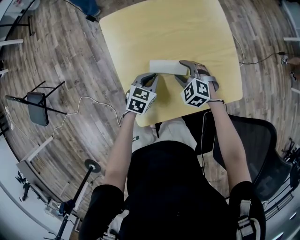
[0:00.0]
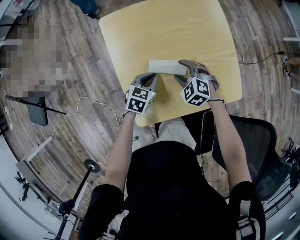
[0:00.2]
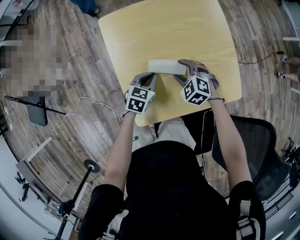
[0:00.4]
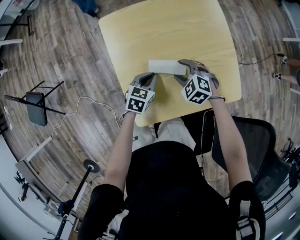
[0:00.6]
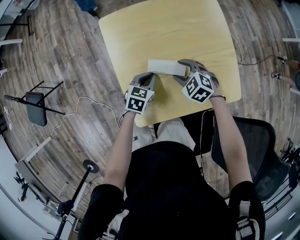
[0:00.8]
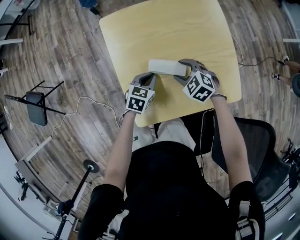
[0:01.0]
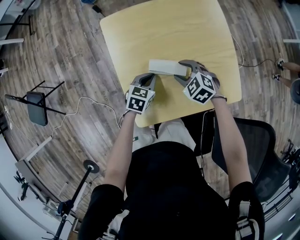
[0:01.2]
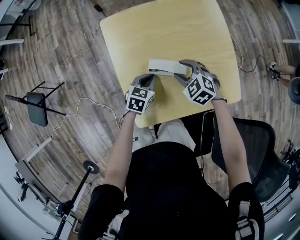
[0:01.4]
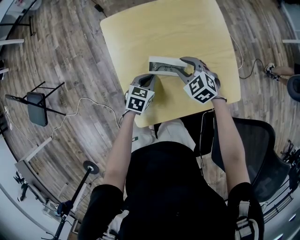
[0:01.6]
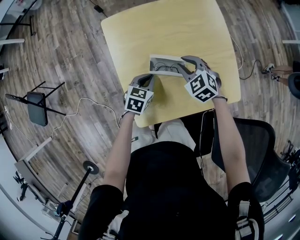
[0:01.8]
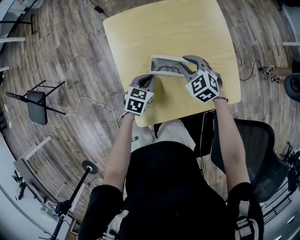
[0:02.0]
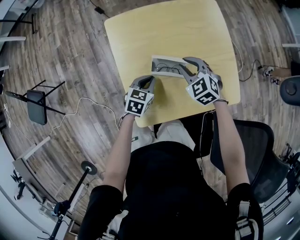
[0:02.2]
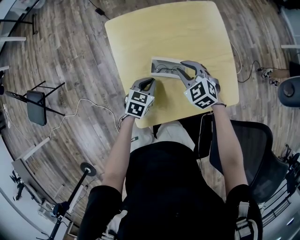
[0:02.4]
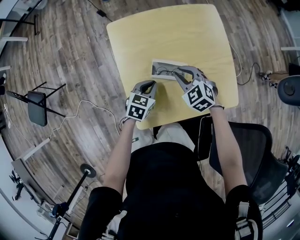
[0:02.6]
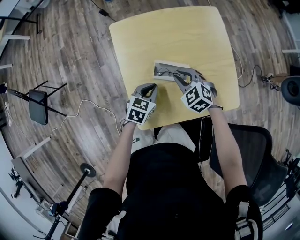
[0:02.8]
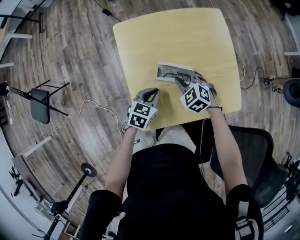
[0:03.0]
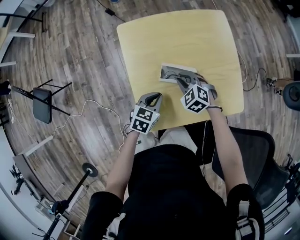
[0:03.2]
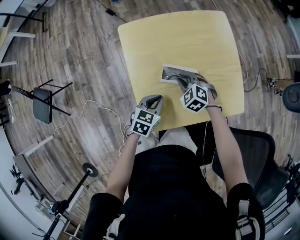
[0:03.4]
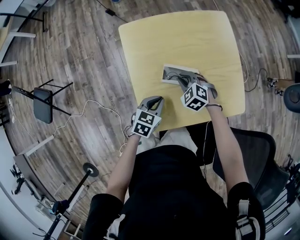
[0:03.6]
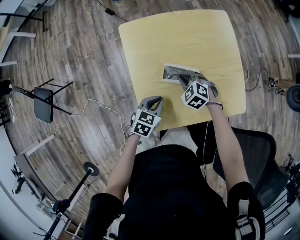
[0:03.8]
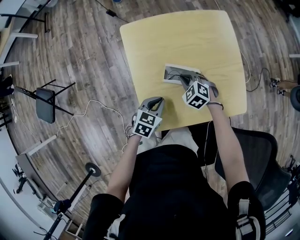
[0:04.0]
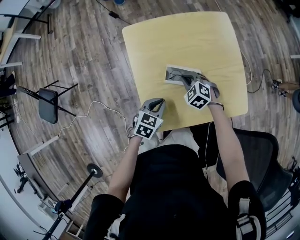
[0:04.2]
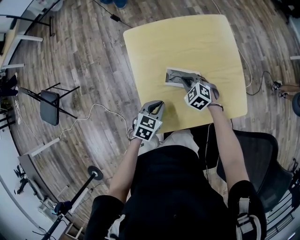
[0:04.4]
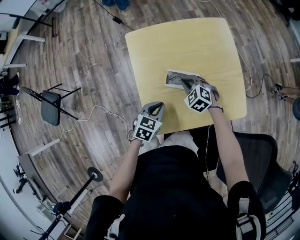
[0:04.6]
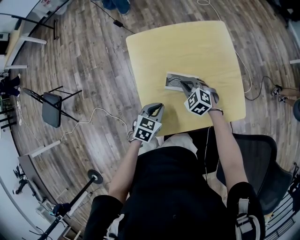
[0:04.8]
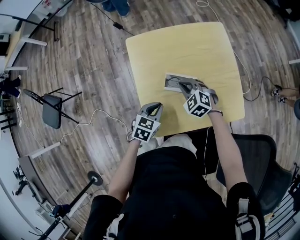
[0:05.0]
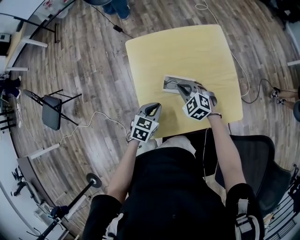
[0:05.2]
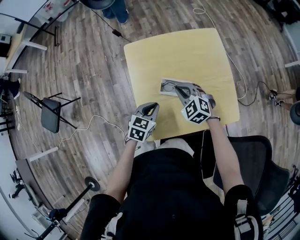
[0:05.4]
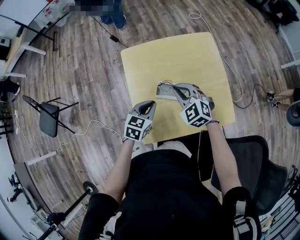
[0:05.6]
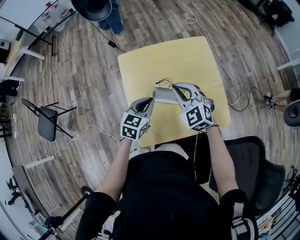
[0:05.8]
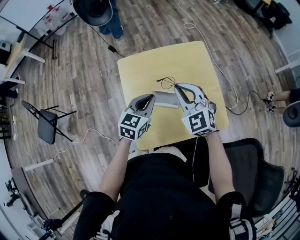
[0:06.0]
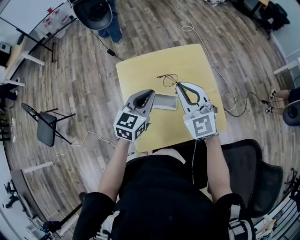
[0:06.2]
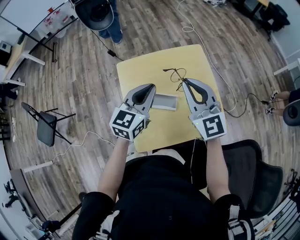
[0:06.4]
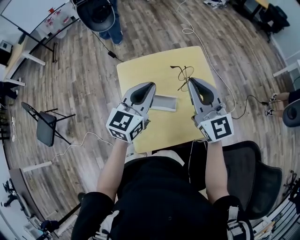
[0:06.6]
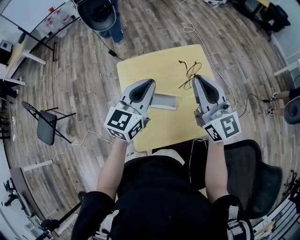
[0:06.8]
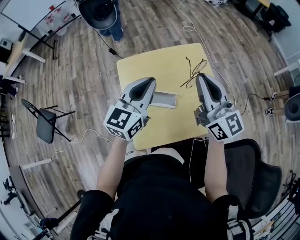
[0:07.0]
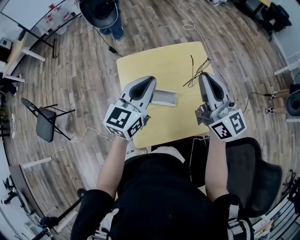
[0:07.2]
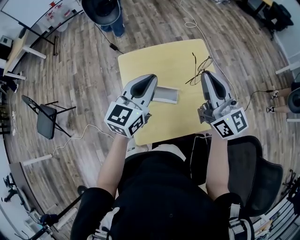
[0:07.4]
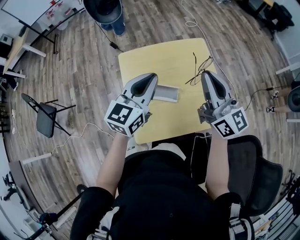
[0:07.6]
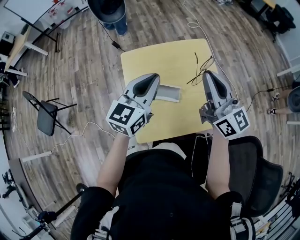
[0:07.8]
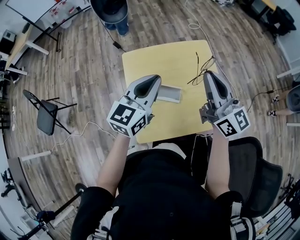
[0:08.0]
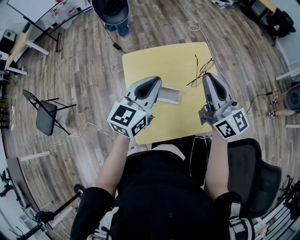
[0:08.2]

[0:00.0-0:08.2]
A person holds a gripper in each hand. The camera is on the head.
0:00.0 to 0:01.6: The right gripper ends up roughly 5 cm from where it was.
0:01.6 to 0:03.2: The left gripper moves upward and backward, approximately 10 cm. The right gripper changes place by some 5 cm.
0:03.2 to 0:05.0: The grippers make only small movements.
0:05.0 to 0:06.6: Both grippers move upward, about 30 cm. The left gripper angles its fingers upward, by approximately 40 degrees. The right gripper tips its fingers upward by roughly 50 degrees.
0:06.6 to 0:08.2: The right gripper turns by about 30 degrees.

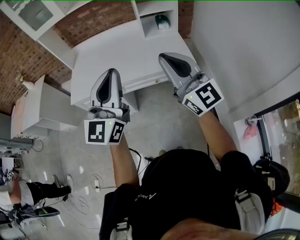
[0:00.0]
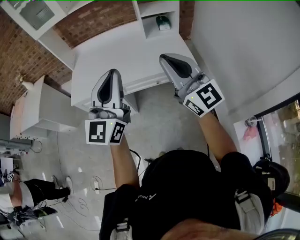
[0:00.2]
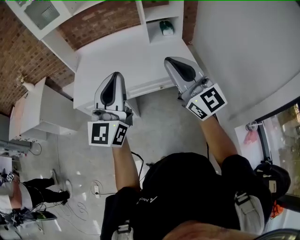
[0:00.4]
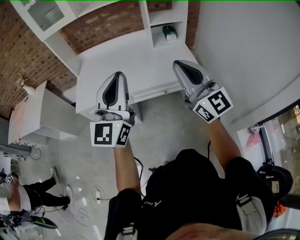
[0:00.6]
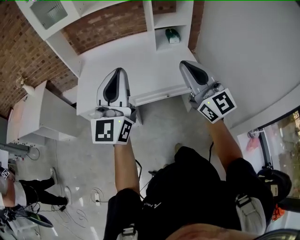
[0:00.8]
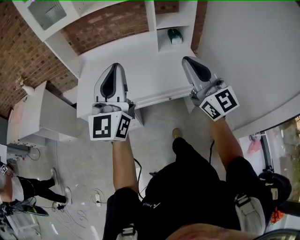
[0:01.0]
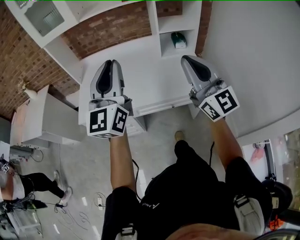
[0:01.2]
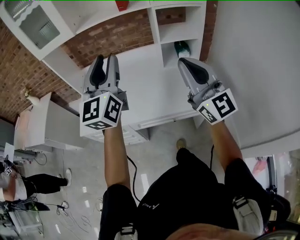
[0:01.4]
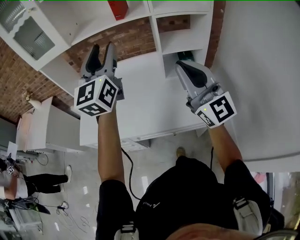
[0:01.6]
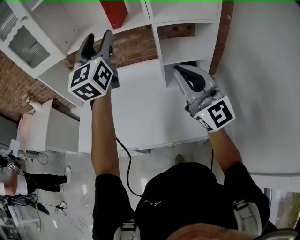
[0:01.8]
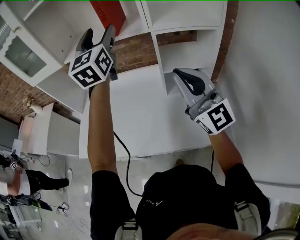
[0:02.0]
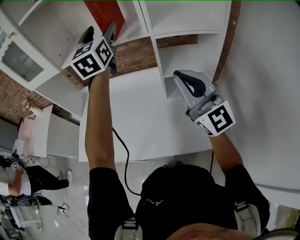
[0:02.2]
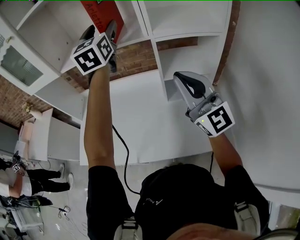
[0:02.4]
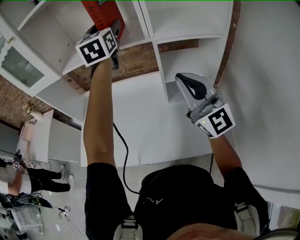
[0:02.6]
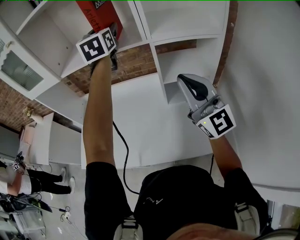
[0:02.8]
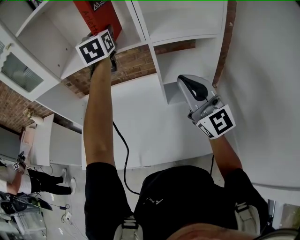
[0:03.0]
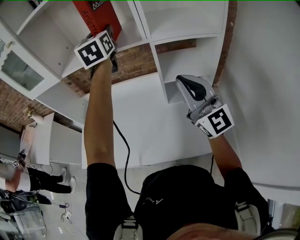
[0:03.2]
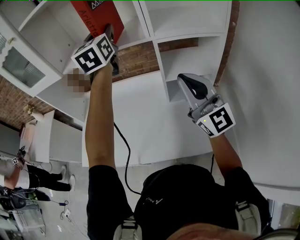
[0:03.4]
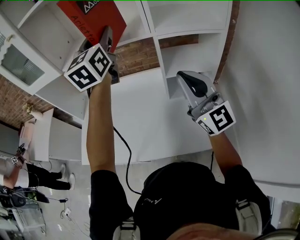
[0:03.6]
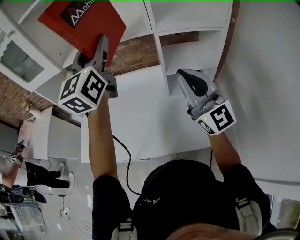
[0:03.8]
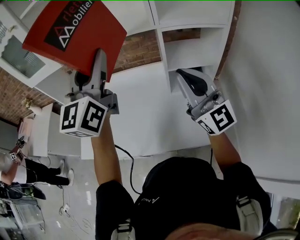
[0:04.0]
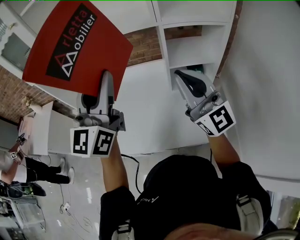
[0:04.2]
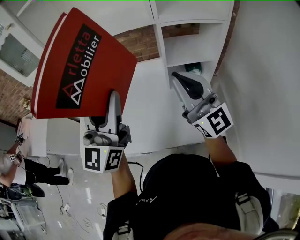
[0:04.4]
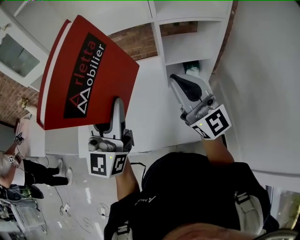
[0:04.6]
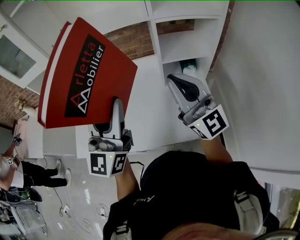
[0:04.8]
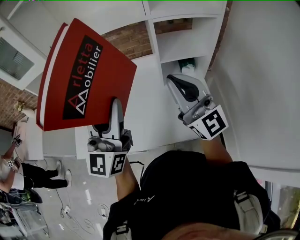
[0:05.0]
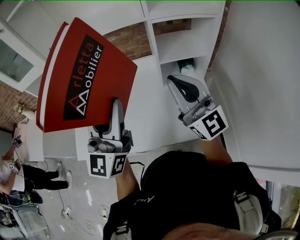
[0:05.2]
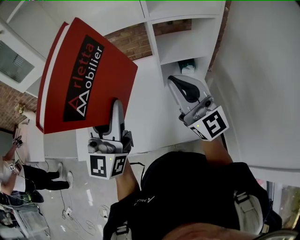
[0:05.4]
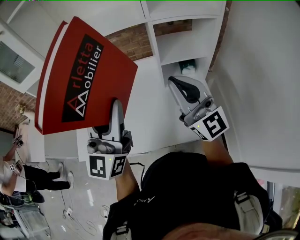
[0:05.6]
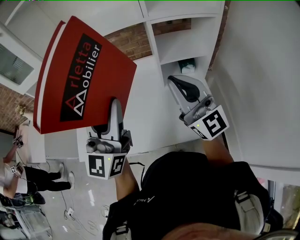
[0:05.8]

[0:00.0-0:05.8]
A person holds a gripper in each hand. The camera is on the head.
0:00.0 to 0:01.4: Both grippers move forward, roughly 25 cm. The left gripper opens its fingers.
0:01.4 to 0:02.8: The right gripper shifts about 25 cm forward and to the right. The left gripper shifts roughly 40 cm forward, changes its angle by some 20 degrees, and opens its fingers.
0:02.8 to 0:04.4: The right gripper heads to the left, covering roughly 5 cm. The left gripper travels backward by approximately 30 cm, turns by some 30 degrees, and closes its fingers.
0:04.4 to 0:05.8: The grippers make only small movements.

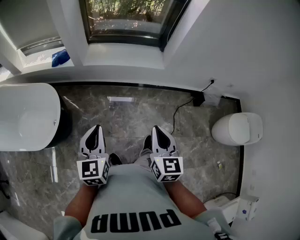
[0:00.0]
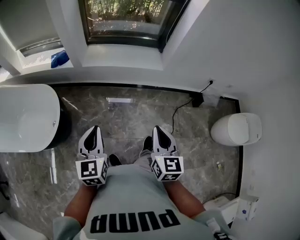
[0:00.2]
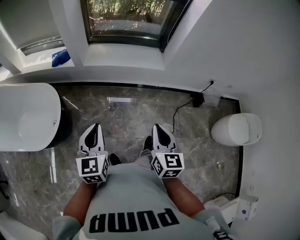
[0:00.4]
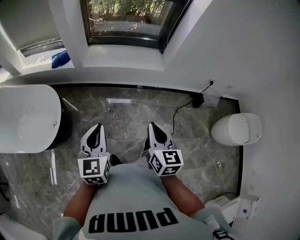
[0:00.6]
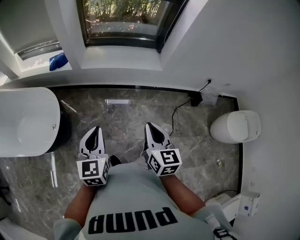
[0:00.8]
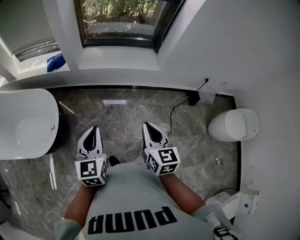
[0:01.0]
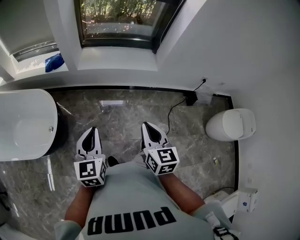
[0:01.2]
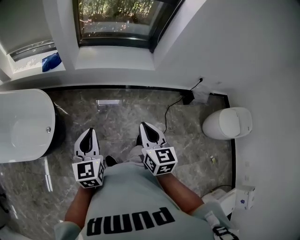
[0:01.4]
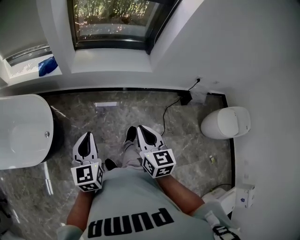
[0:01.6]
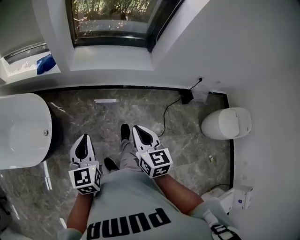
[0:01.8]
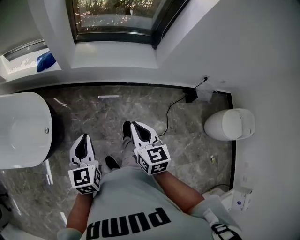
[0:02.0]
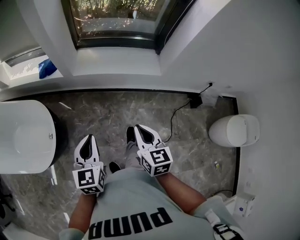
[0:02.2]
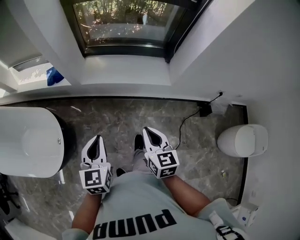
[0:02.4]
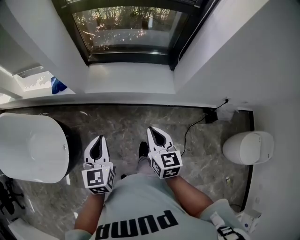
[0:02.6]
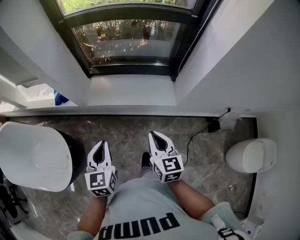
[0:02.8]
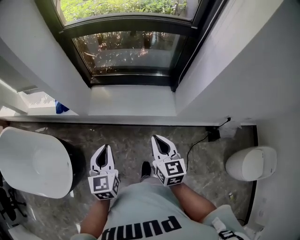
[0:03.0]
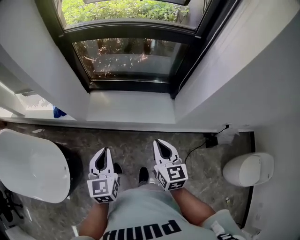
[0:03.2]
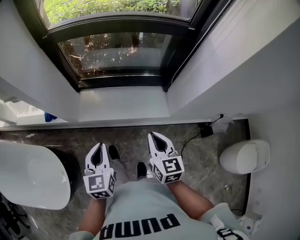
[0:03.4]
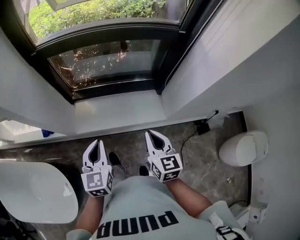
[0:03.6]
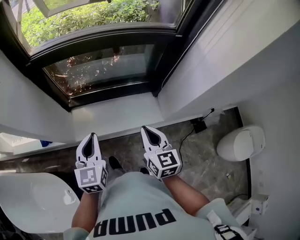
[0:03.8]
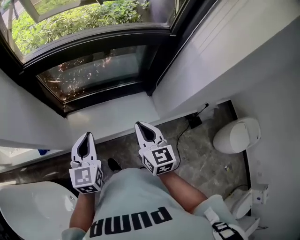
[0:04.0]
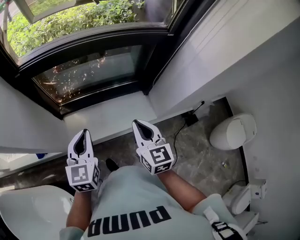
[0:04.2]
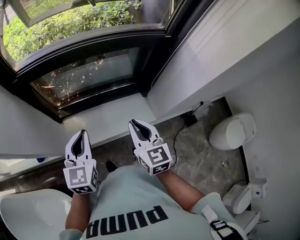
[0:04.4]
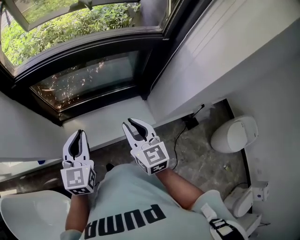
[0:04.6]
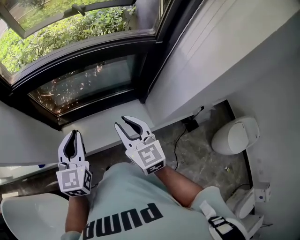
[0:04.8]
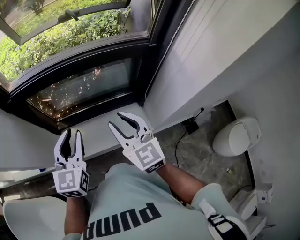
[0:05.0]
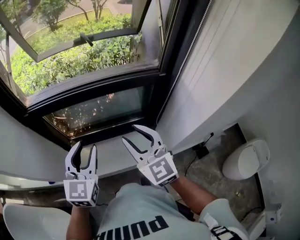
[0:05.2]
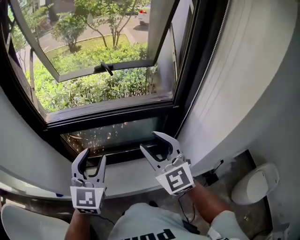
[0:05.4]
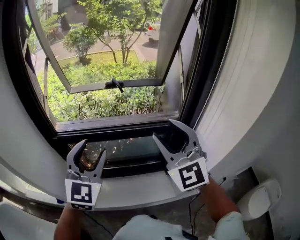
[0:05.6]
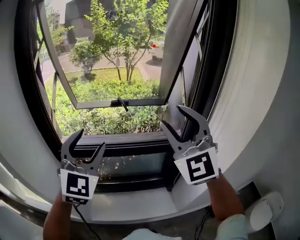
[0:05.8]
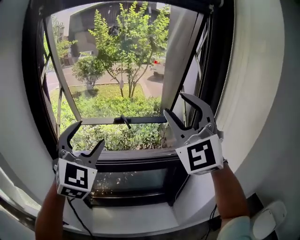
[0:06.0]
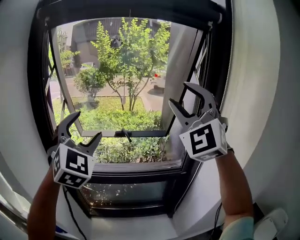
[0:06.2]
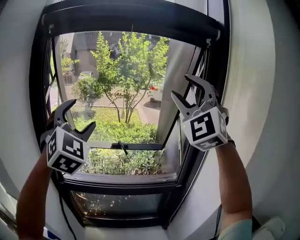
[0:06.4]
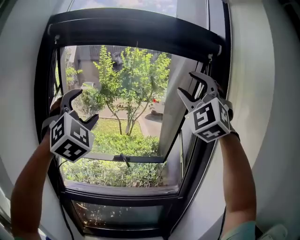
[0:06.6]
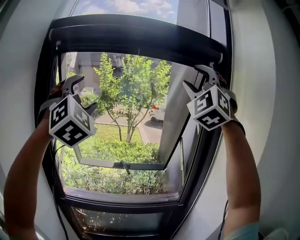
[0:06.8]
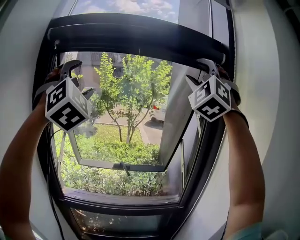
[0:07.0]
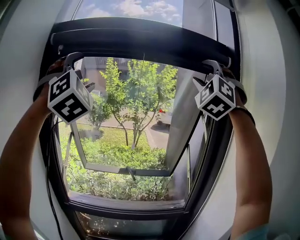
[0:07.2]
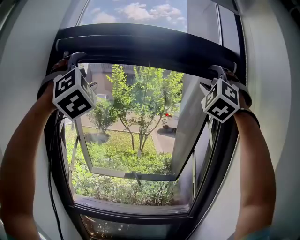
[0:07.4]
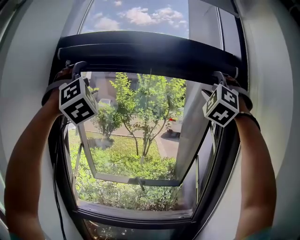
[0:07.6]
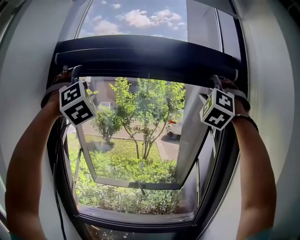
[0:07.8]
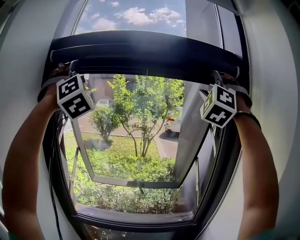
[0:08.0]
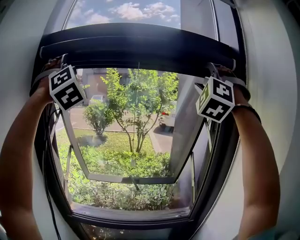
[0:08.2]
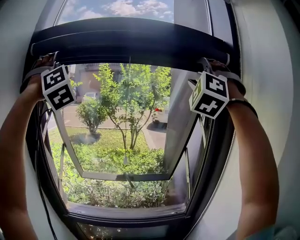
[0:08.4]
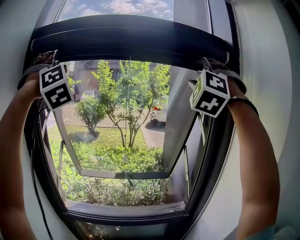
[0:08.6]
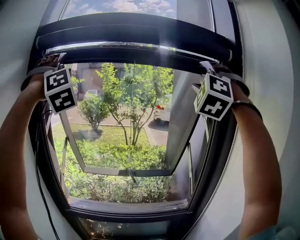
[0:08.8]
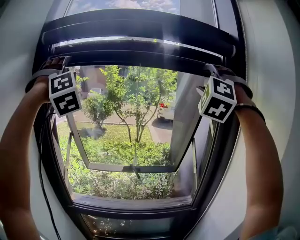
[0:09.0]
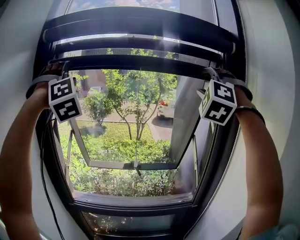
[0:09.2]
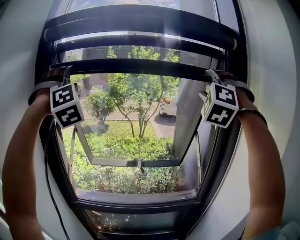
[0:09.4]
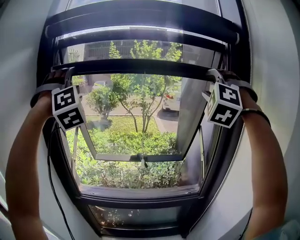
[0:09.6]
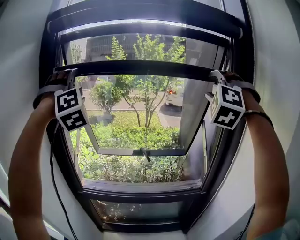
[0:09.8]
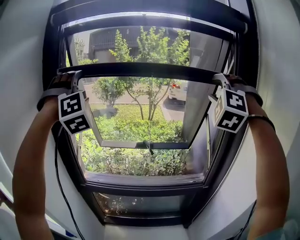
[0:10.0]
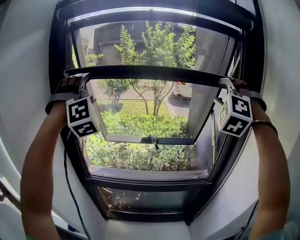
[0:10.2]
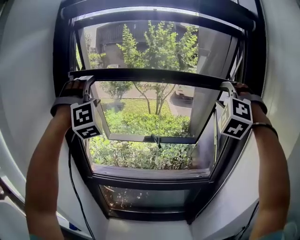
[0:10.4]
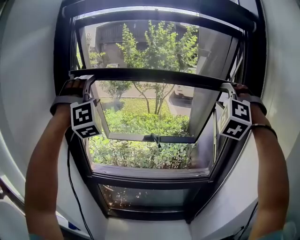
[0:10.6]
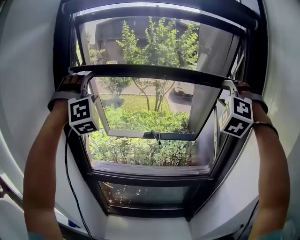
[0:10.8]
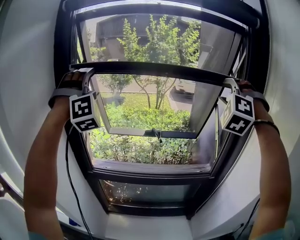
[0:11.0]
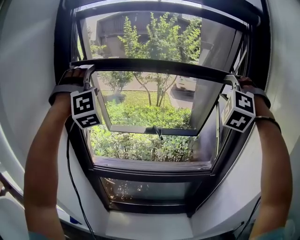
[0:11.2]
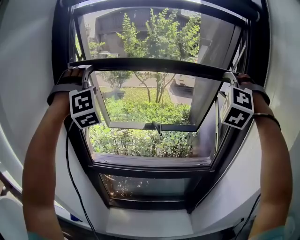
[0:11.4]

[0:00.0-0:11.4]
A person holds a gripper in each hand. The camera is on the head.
0:00.0 to 0:01.4: Both grippers travel together to the left, roughly 5 cm.
0:01.4 to 0:02.8: The grippers both shift forward by approximately 35 cm.
0:02.8 to 0:04.2: Both grippers travel together forward, about 25 cm. The left gripper rotates some 20 degrees.
0:04.2 to 0:05.6: The grippers both shift upward and forward by some 35 cm. The left gripper changes its angle by approximately 30 degrees, and opens its fingers. Meanwhile the right gripper rolls counterclockwise, seen from behind, by some 40 degrees, and opens its fingers.
0:05.6 to 0:07.2: The two grippers go some 50 cm upward. The right gripper twists roughly 50 degrees counterclockwise, seen from behind; the left gripper rolls clockwise, seen from behind, by approximately 50 degrees, and opens its fingers.
0:07.2 to 0:08.6: The left gripper moves forward and to the left, some 10 cm, and swivels about 20 degrees.
0:08.6 to 0:10.0: The two grippers go roughly 20 cm downward.
0:10.0 to 0:11.4: The grippers both shift downward by roughly 5 cm.
